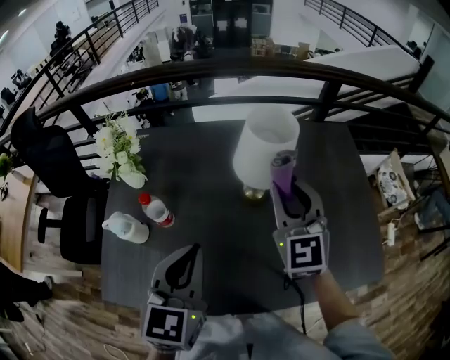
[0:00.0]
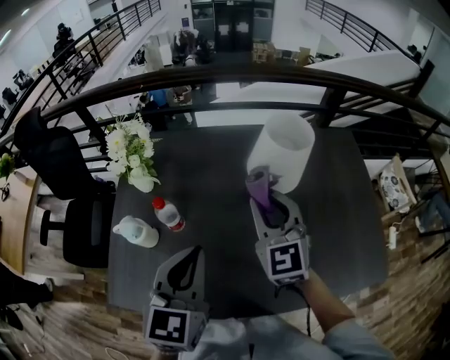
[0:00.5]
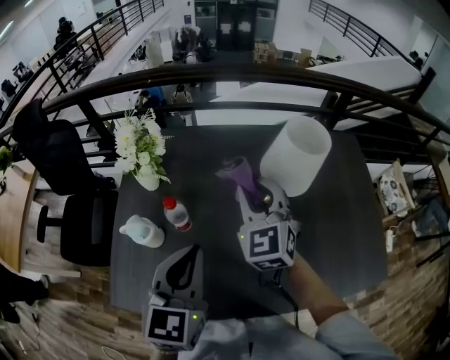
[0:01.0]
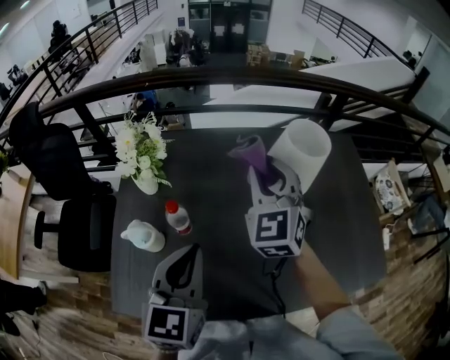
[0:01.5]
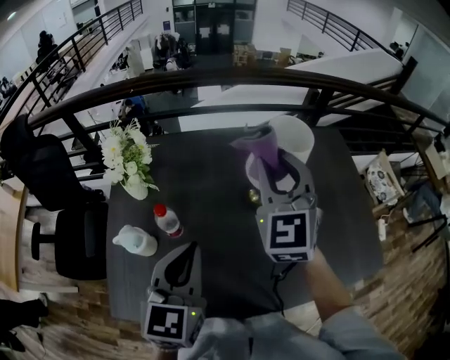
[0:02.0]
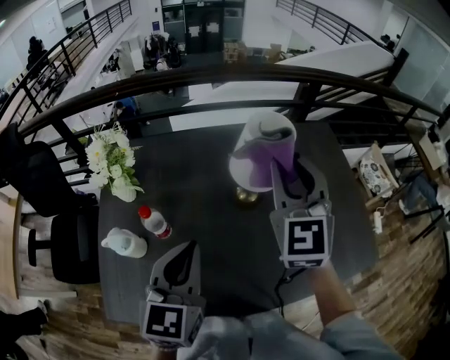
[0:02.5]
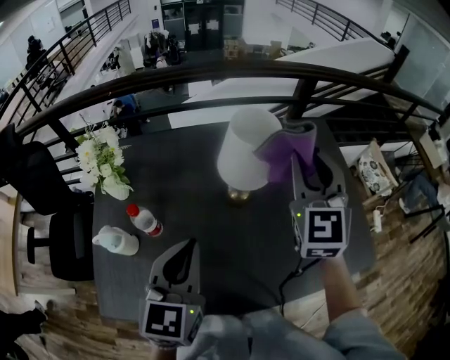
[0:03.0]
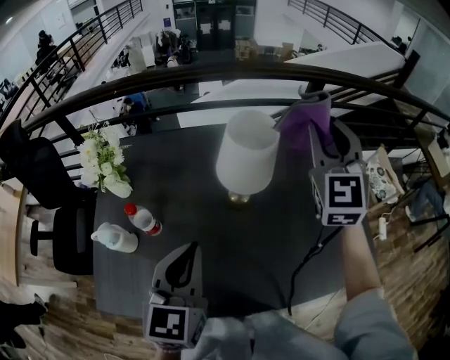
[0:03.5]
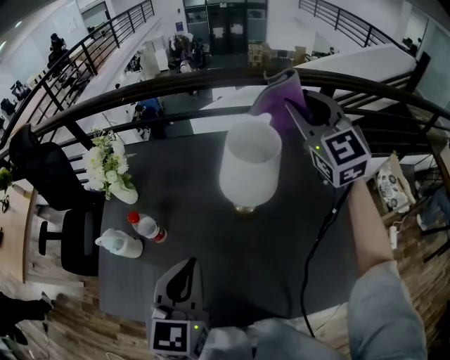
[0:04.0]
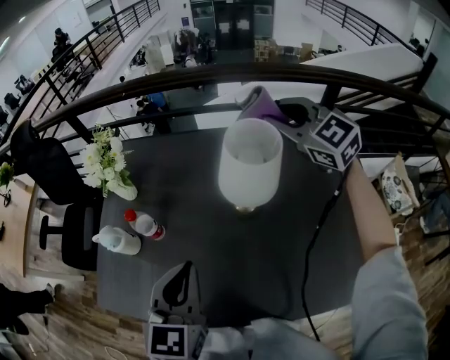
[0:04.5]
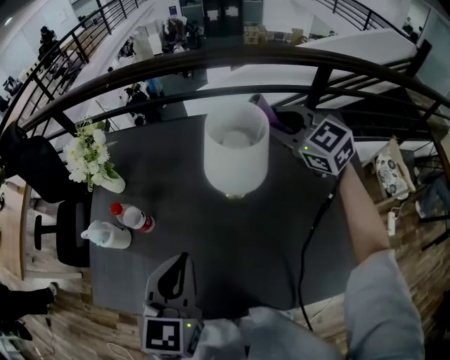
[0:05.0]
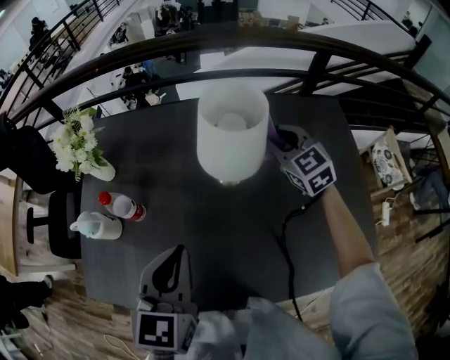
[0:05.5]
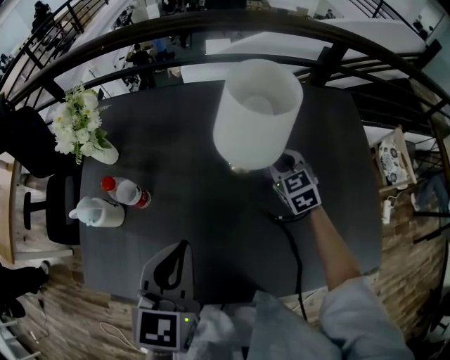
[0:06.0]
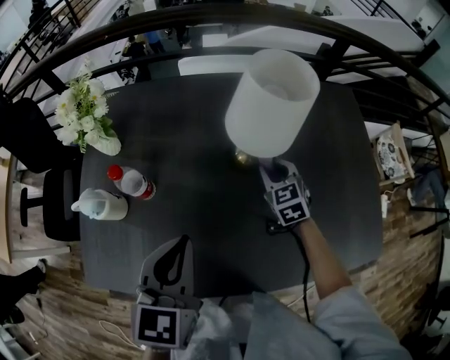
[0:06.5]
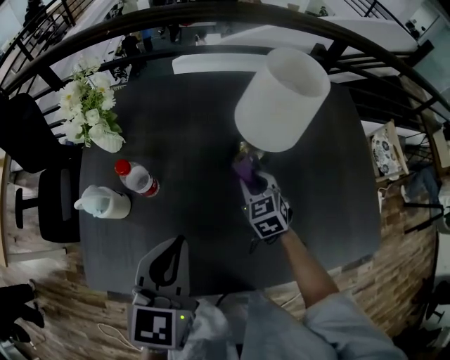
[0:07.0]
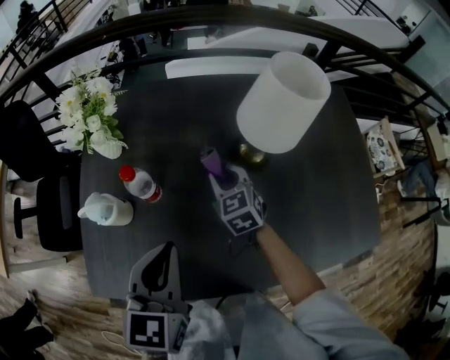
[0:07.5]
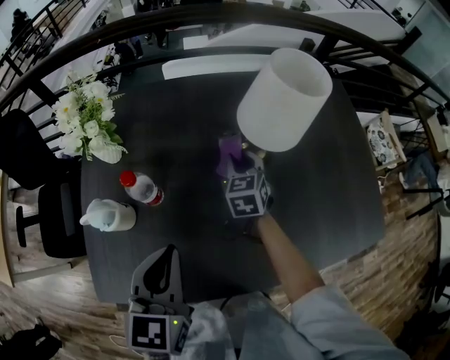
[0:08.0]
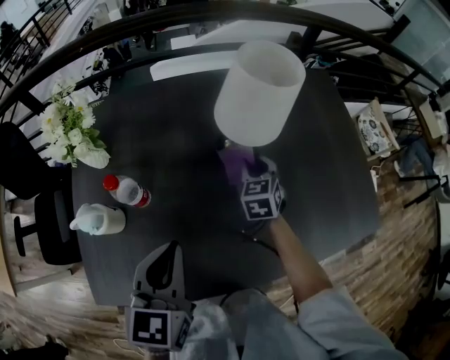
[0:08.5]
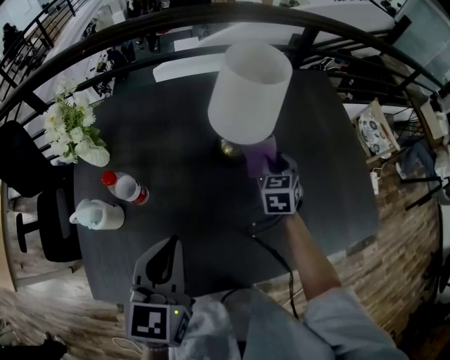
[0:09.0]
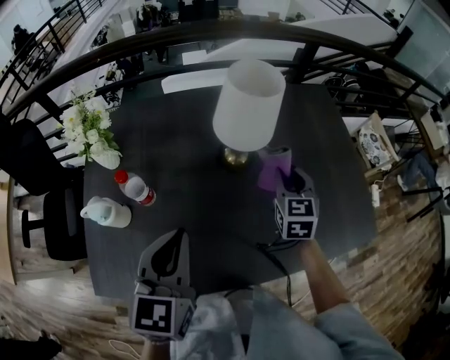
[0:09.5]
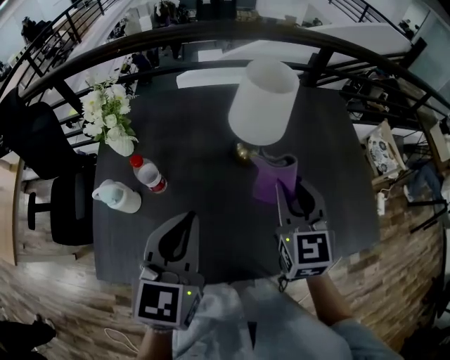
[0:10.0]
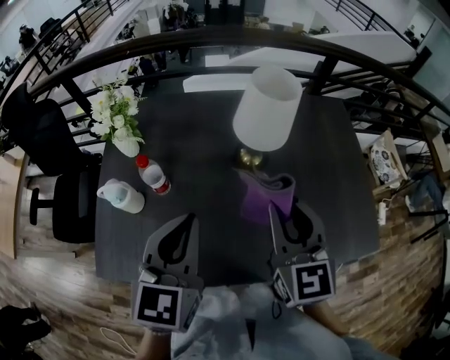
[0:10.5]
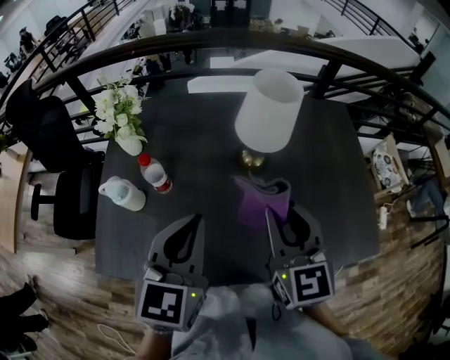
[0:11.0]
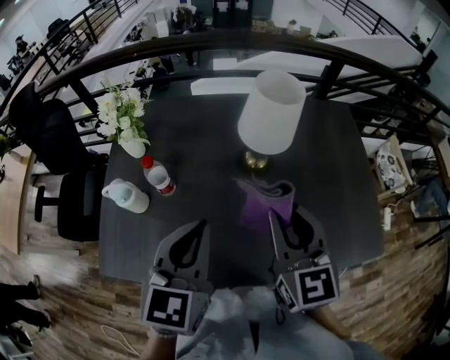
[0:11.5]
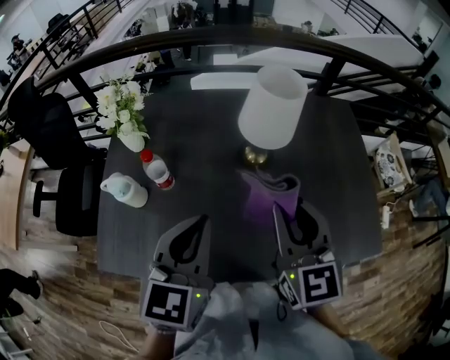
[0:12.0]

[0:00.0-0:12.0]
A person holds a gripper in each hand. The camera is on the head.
0:00.0 to 0:02.0: The left gripper heads to the left, covering approximately 5 cm. Meanwhile the right gripper travels to the left and upward by roughly 10 cm.
0:02.0 to 0:04.0: The right gripper goes some 20 cm forward and to the right, while the left gripper shifts approximately 10 cm to the right.
0:04.0 to 0:06.0: The right gripper is displaced downward by some 35 cm, and angles its fingers downward, by roughly 30 degrees. Meanwhile the left gripper travels downward by about 5 cm.
0:06.0 to 0:08.0: The grippers both shift to the left by approximately 10 cm. The right gripper changes its angle by approximately 20 degrees.
0:08.0 to 0:10.0: The left gripper shifts roughly 10 cm upward and to the right. Meanwhile the right gripper is displaced upward, backward and to the right by approximately 25 cm.
0:10.0 to 0:12.0: The right gripper ends up roughly 5 cm from where it was.

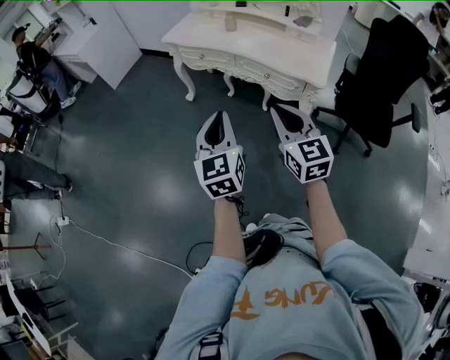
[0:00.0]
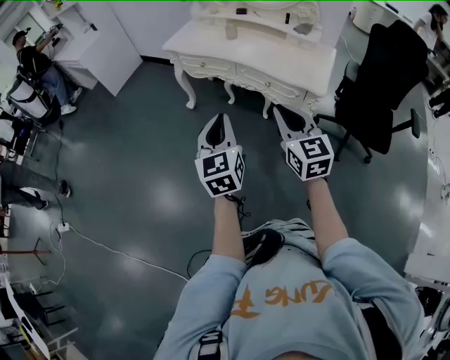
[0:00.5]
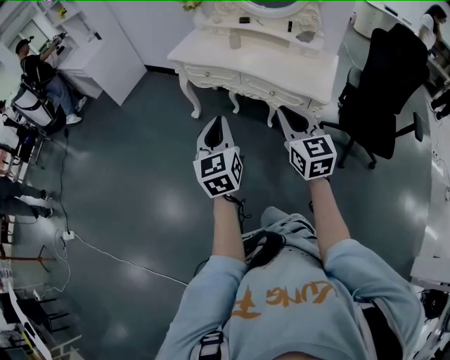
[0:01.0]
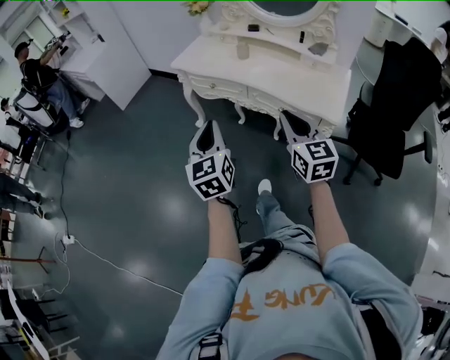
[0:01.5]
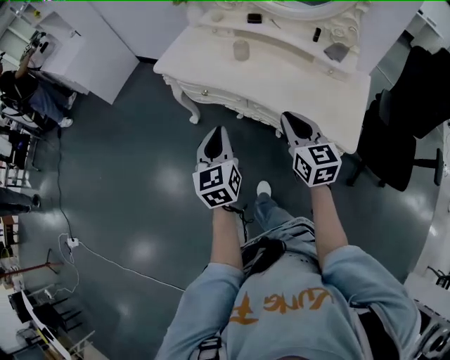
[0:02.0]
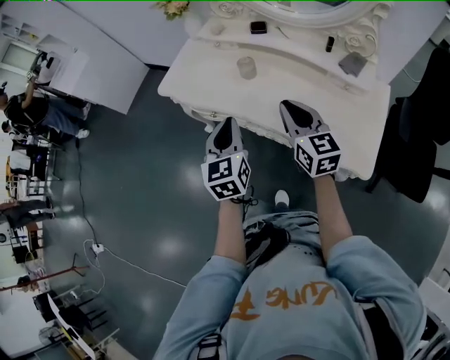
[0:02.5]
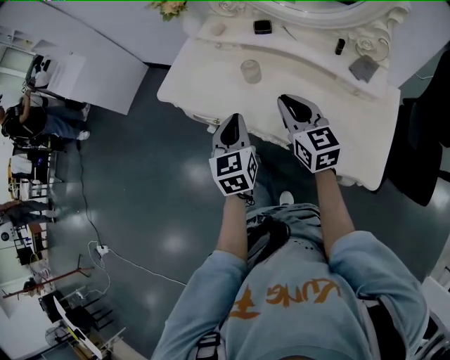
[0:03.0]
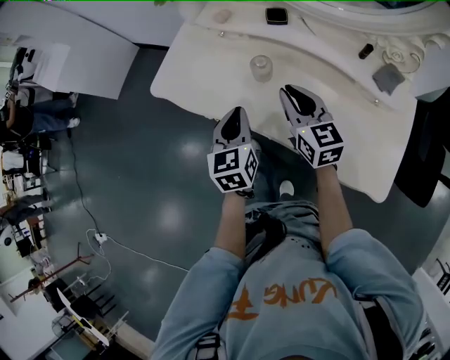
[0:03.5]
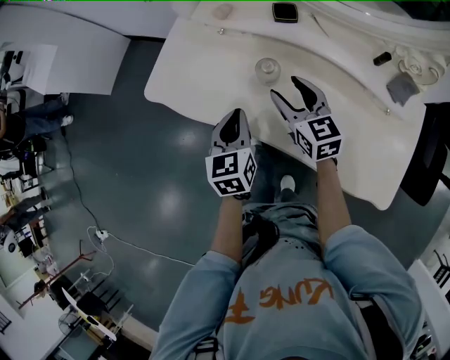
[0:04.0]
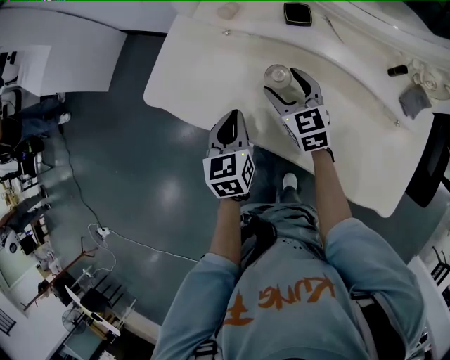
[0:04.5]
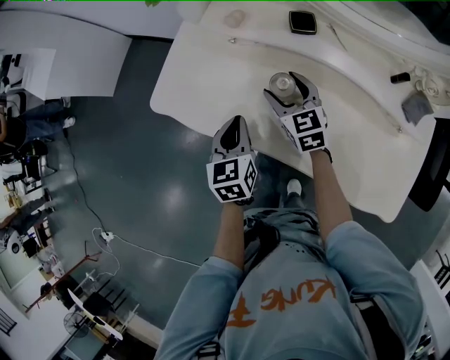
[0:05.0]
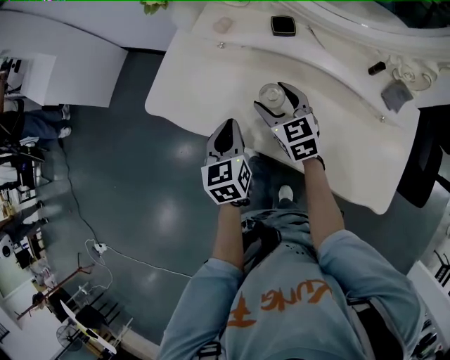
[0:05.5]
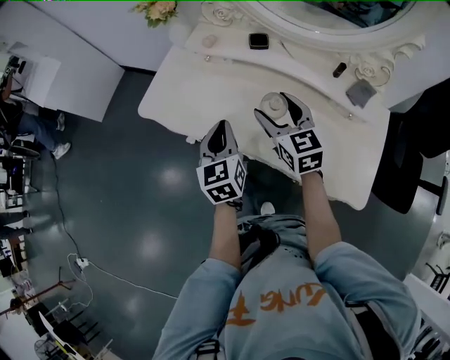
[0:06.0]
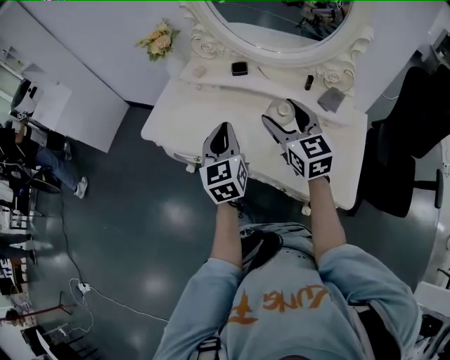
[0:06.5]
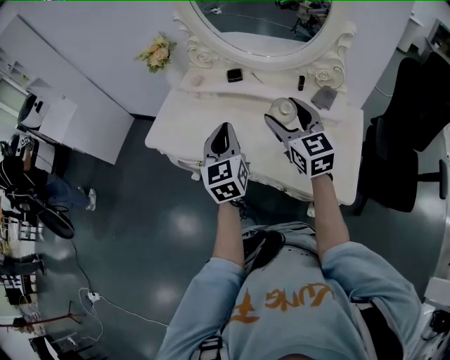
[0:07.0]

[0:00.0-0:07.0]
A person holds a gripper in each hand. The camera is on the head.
0:00.0 to 0:02.0: Both grippers move forward, some 35 cm.
0:02.0 to 0:03.5: The grippers both shift forward by roughly 30 cm.
0:03.5 to 0:05.0: The left gripper shifts approximately 10 cm forward and downward. The right gripper moves forward and downward, approximately 15 cm, and opens up.
0:05.0 to 0:07.0: The two grippers go roughly 30 cm upward, backward and to the right. The left gripper changes its angle by some 30 degrees; the right gripper changes its angle by approximately 20 degrees.

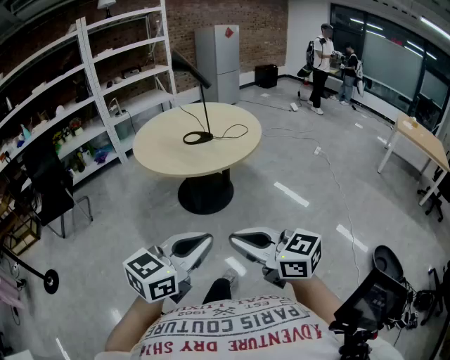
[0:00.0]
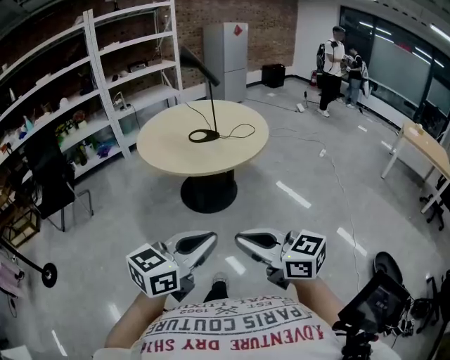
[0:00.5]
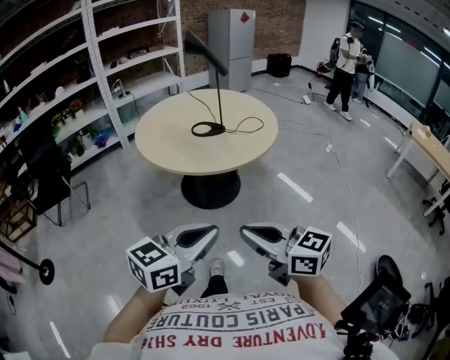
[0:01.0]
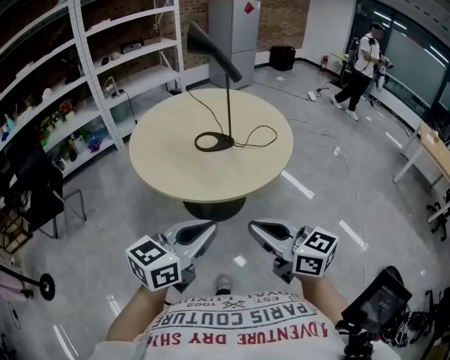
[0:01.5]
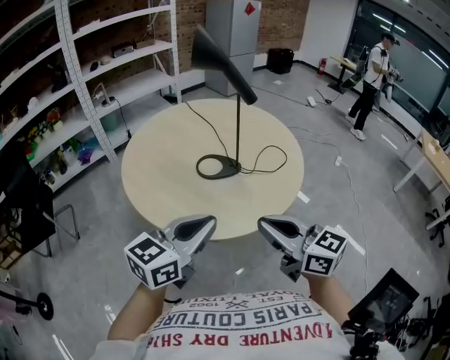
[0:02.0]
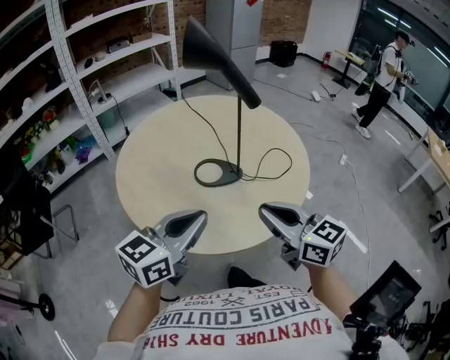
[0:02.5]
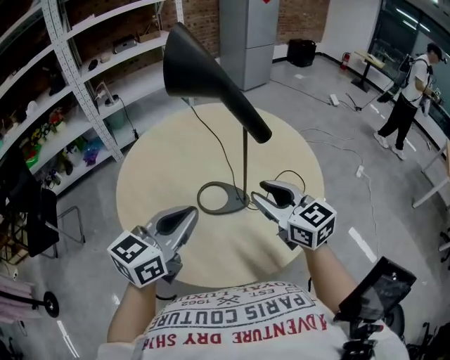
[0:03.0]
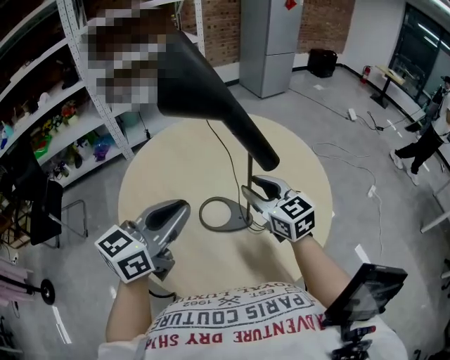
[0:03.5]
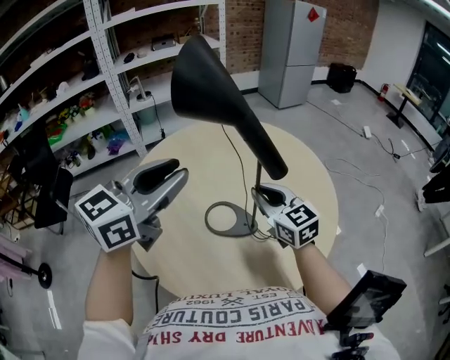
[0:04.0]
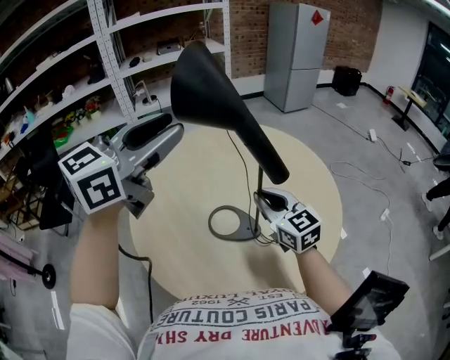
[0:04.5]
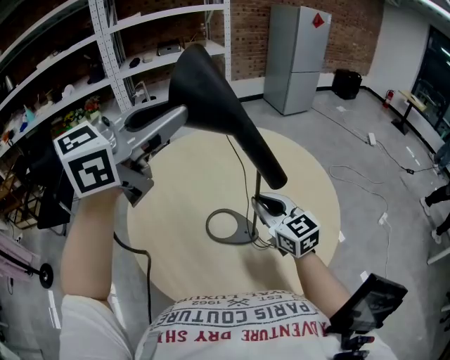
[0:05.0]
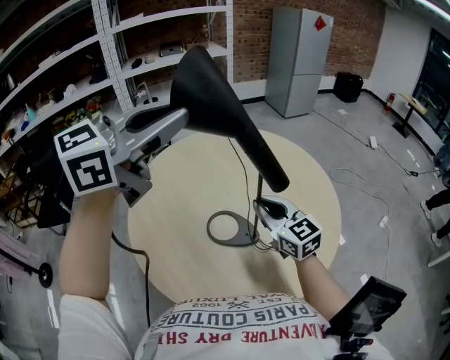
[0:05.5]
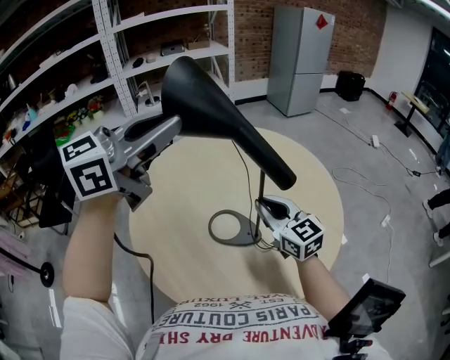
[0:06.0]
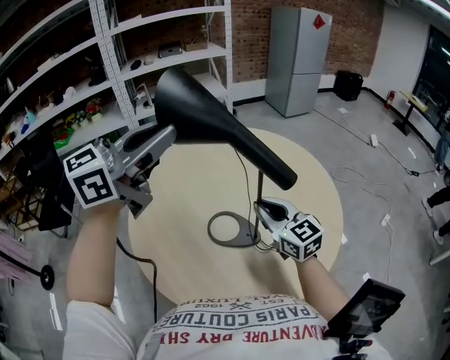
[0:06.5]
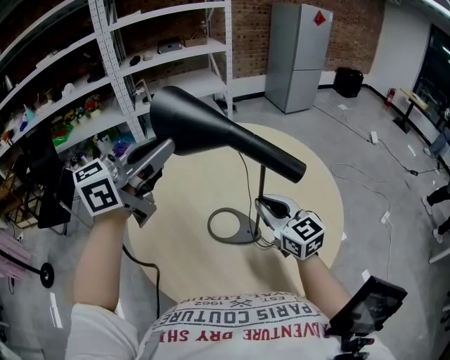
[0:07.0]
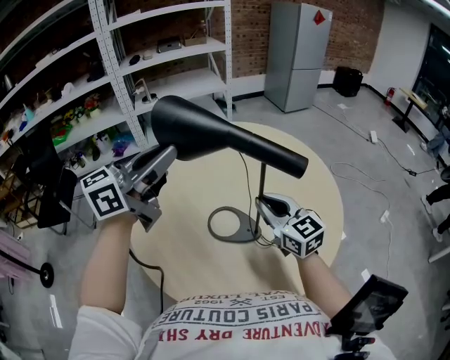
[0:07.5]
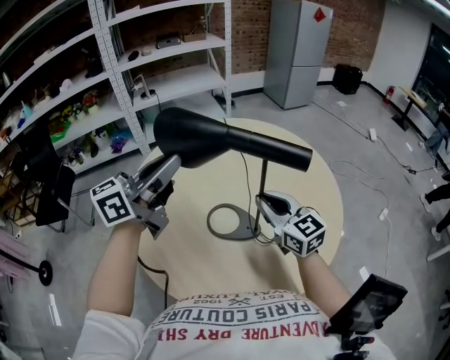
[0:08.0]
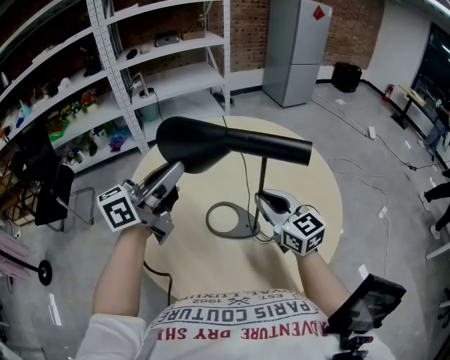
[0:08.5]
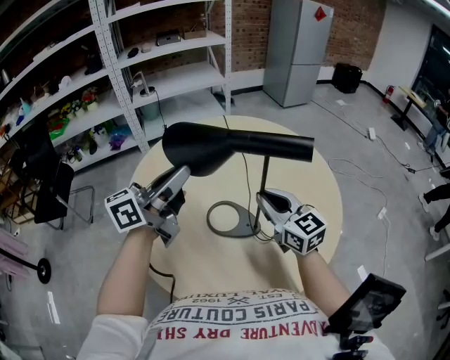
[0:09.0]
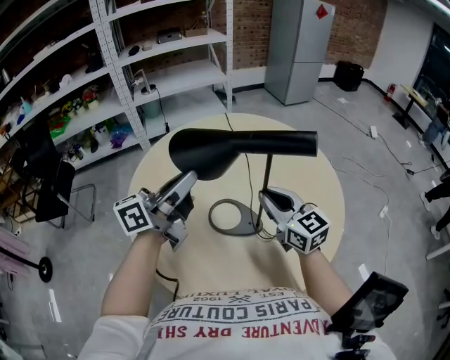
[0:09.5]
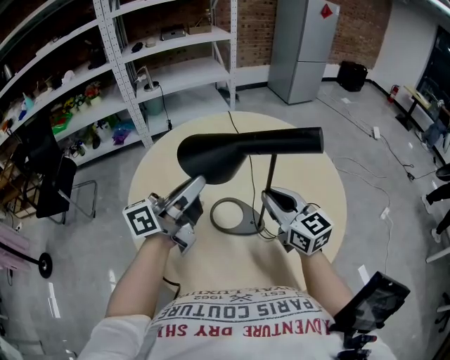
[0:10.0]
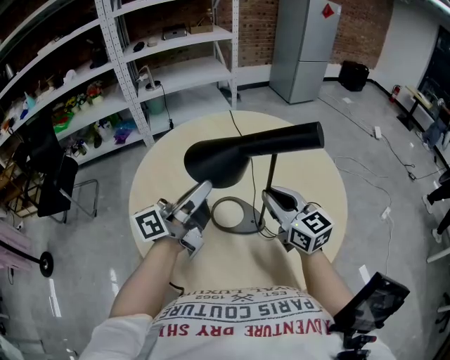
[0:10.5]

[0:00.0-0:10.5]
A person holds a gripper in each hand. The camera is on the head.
0:00.0 to 0:02.0: The two grippers travel together, forward, roughly 50 cm.
0:02.0 to 0:04.0: The two grippers go some 35 cm forward. The left gripper rotates roughly 20 degrees, and opens up; the right gripper opens, then closes again.
0:04.0 to 0:06.5: The left gripper moves upward, approximately 10 cm.
0:06.5 to 0:08.5: The left gripper travels downward by roughly 15 cm, and turns by about 30 degrees.
0:08.5 to 0:10.5: The left gripper heads downward, covering about 5 cm, and changes its angle by approximately 30 degrees.
